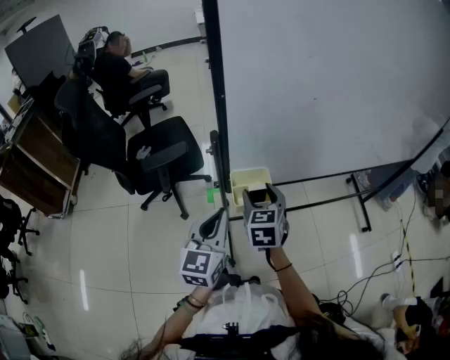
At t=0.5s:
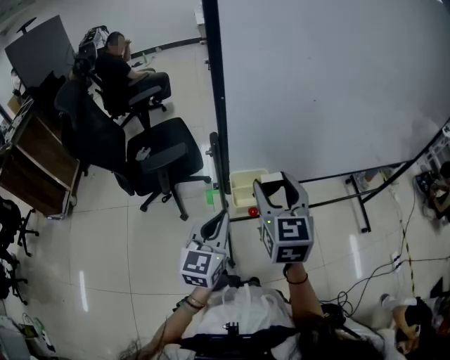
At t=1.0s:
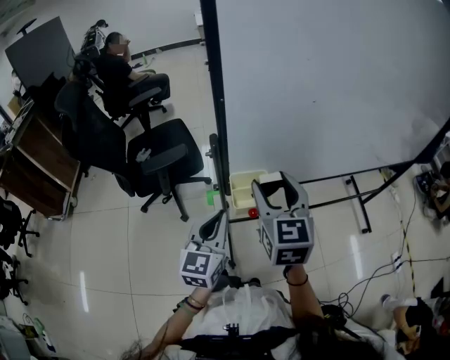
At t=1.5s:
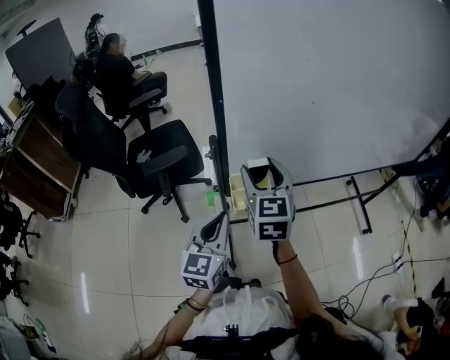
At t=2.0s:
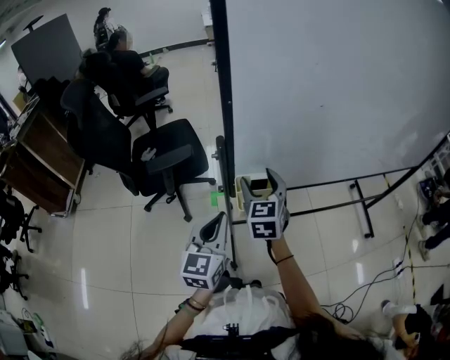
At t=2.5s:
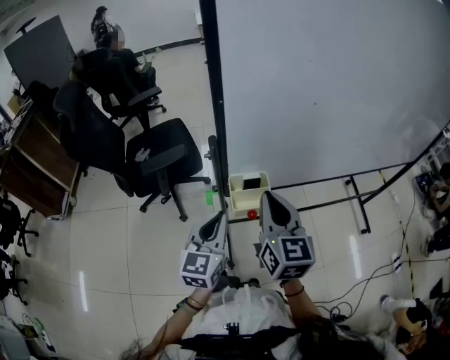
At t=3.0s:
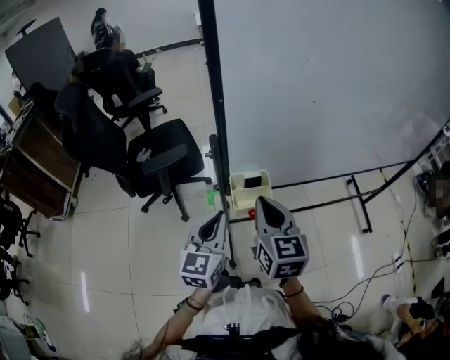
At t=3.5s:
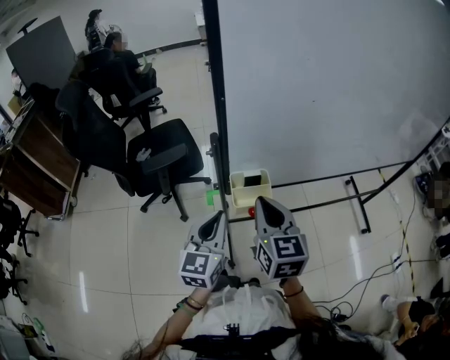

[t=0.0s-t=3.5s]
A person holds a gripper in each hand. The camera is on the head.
t=0.0s to t=2.0s: The right gripper travels upward and back again, roughly 15 cm each way.
t=2.0s to t=3.5s: The right gripper moves backward, some 10 cm, and closes.

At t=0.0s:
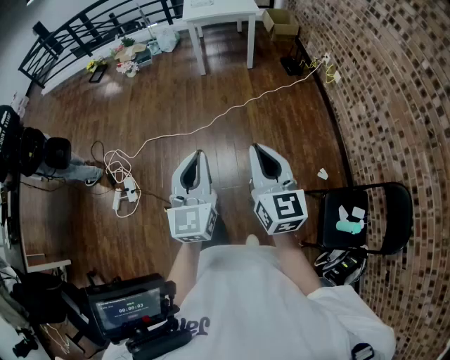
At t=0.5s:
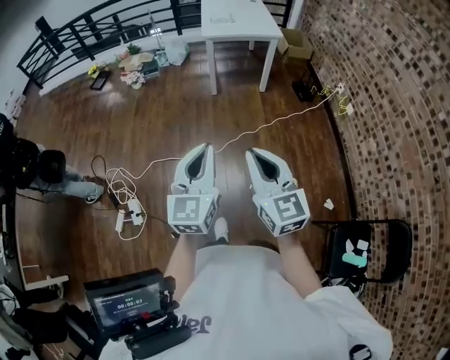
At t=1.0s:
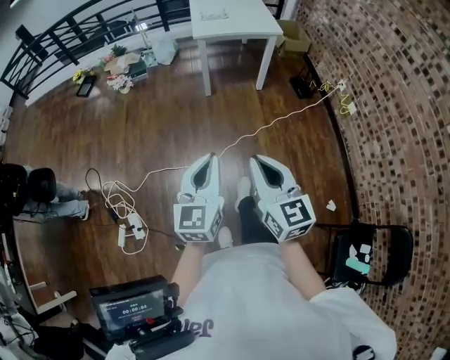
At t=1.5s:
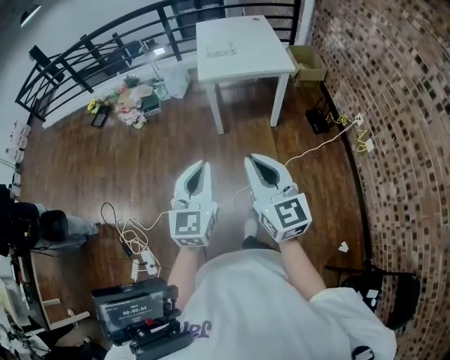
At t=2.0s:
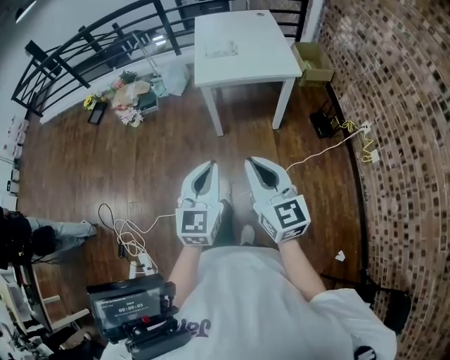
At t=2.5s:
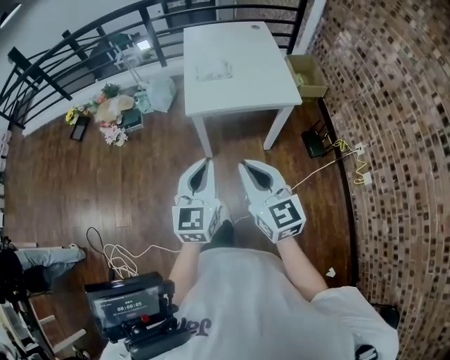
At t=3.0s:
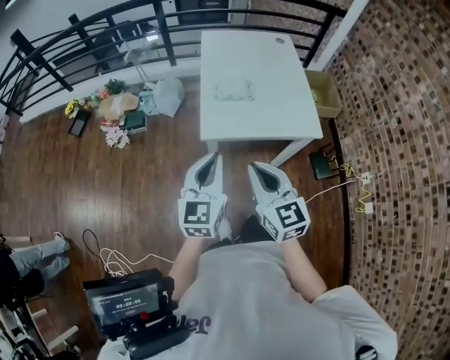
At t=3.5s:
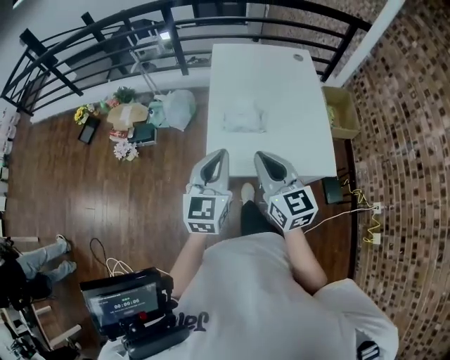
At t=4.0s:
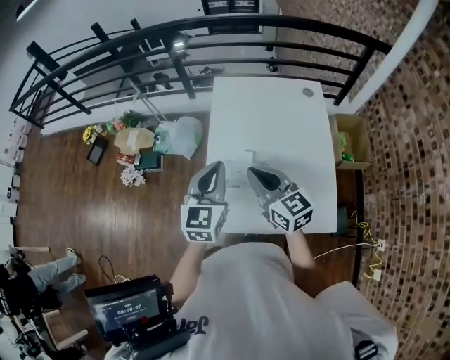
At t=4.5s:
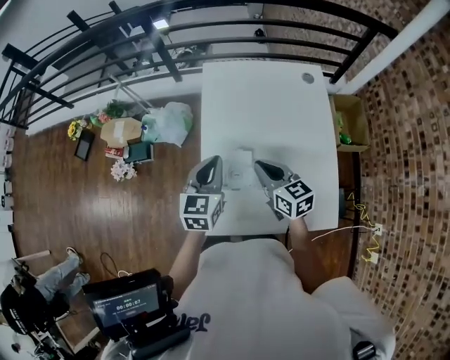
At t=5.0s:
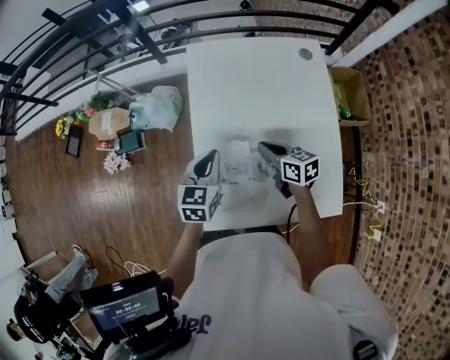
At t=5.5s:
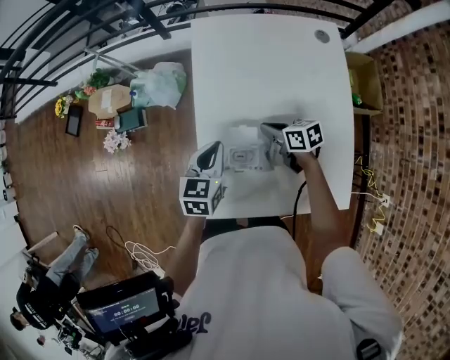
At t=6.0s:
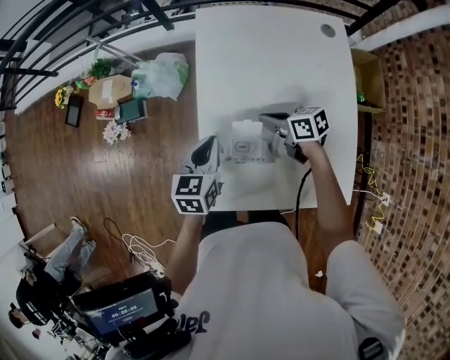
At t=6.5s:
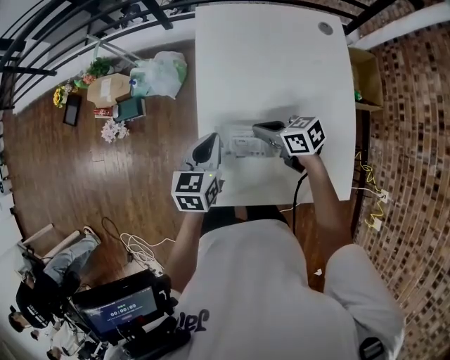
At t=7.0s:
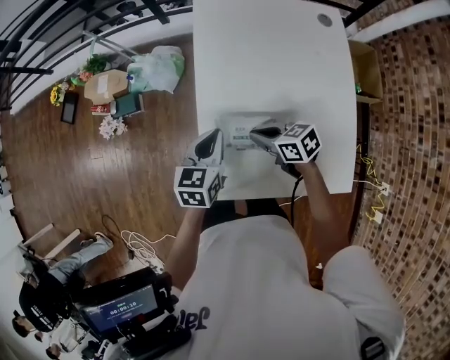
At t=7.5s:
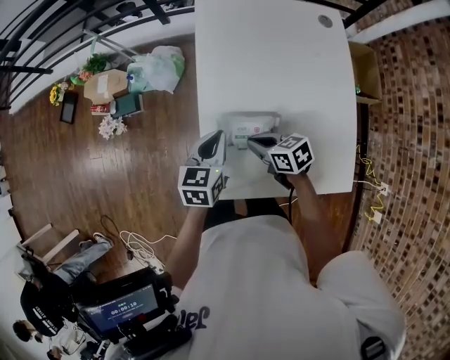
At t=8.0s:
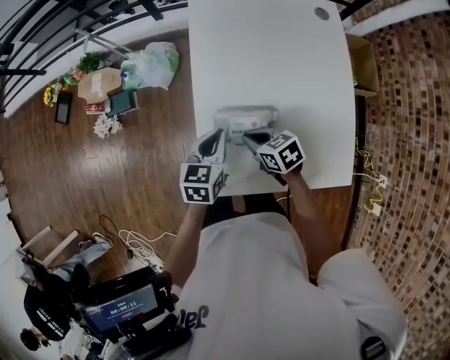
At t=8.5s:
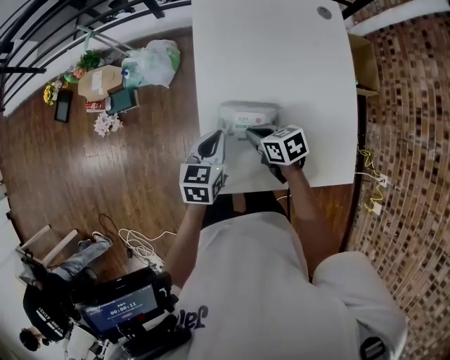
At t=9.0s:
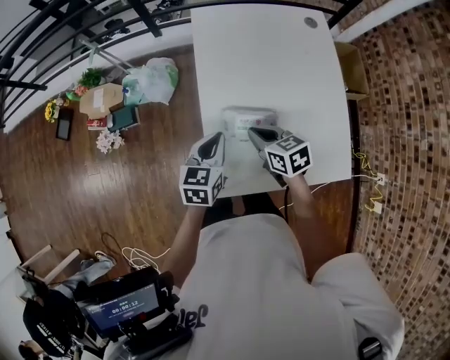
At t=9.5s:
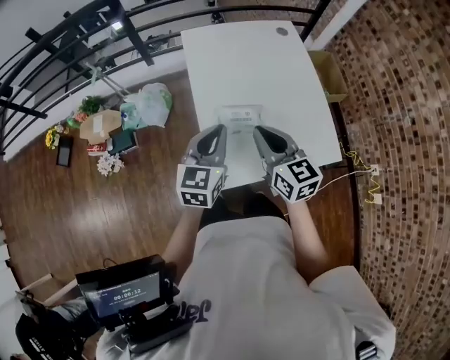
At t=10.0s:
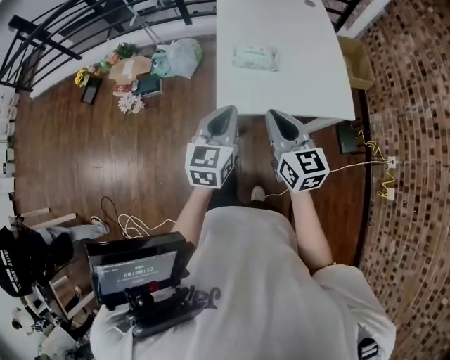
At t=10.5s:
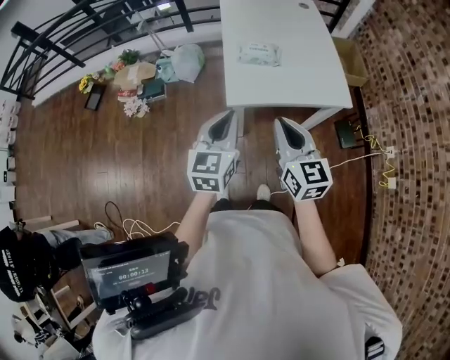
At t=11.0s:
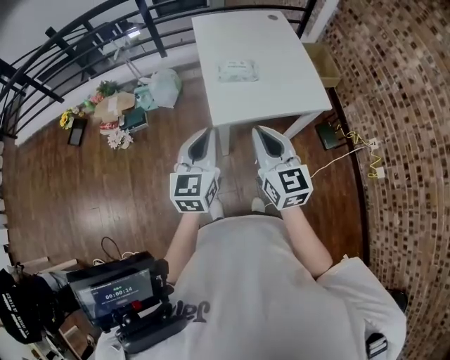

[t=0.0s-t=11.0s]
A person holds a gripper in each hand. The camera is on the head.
t=0.0s to t=2.0s: The pair of grippers is taken forward, approximately 70 cm.
t=2.0s to t=3.5s: The pair of grippers is taken forward, about 60 cm.
t=3.5s to t=5.5s: The right gripper shifts roughly 40 cm forward, downward and to the right, and rotates some 50 degrees. The left gripper shifts some 35 cm forward and downward, and changes its angle by approximately 30 degrees.
t=5.5s to t=7.5s: The right gripper goes approximately 15 cm to the left and backward.
t=7.5s to t=9.0s: The right gripper heads upward, covering some 5 cm.
t=9.0s to t=11.0s: Both grippers move backward and upward, some 40 cm. The right gripper angles its fingers upward, by roughly 30 degrees, while the left gripper turns by roughly 30 degrees.

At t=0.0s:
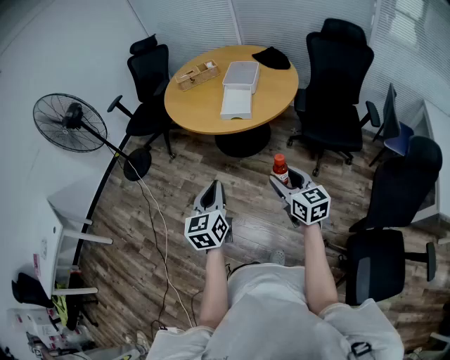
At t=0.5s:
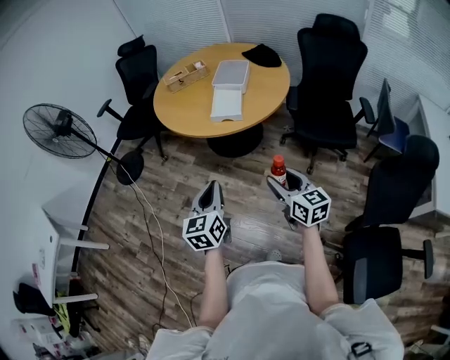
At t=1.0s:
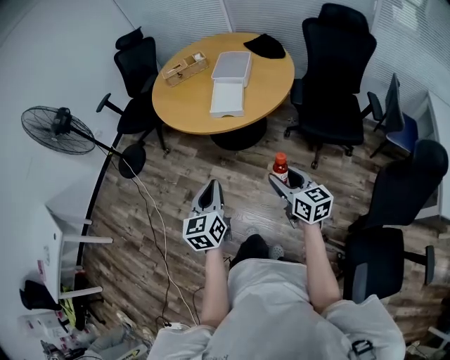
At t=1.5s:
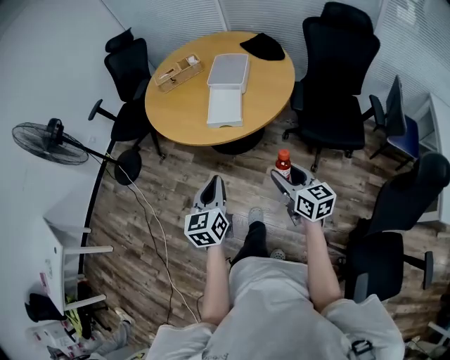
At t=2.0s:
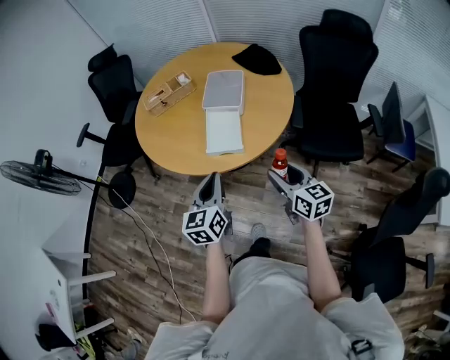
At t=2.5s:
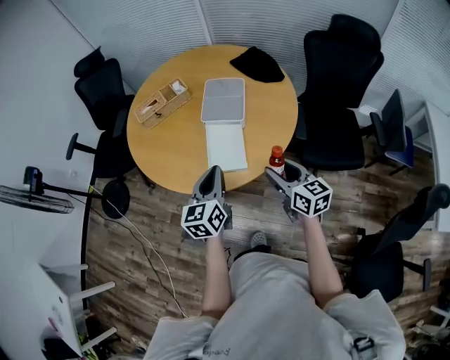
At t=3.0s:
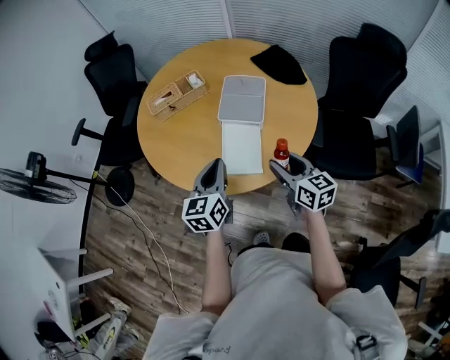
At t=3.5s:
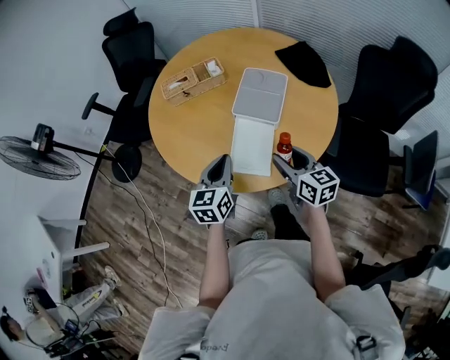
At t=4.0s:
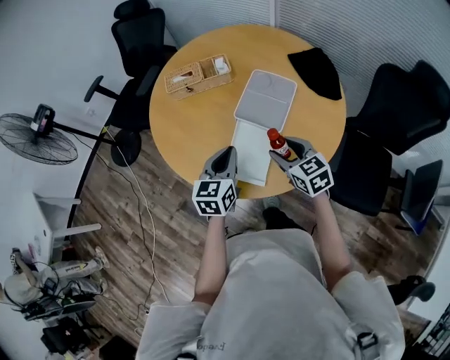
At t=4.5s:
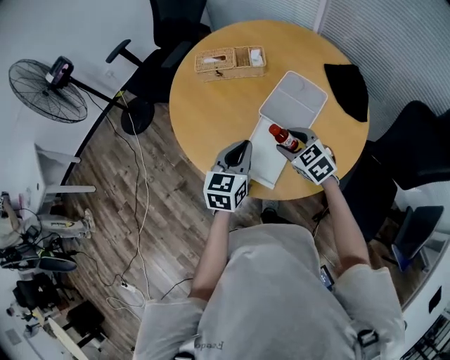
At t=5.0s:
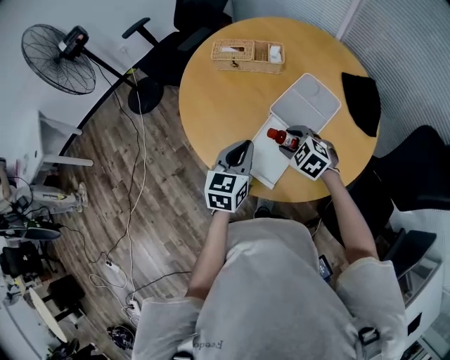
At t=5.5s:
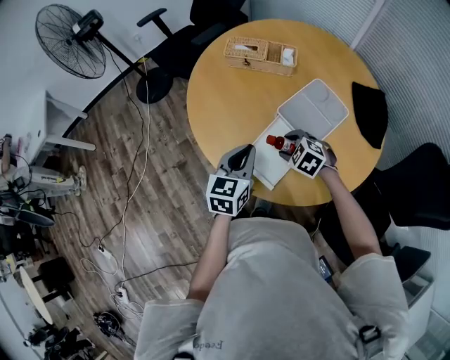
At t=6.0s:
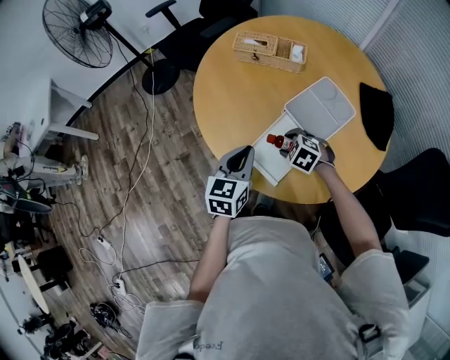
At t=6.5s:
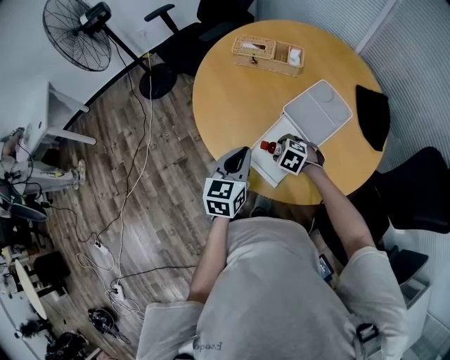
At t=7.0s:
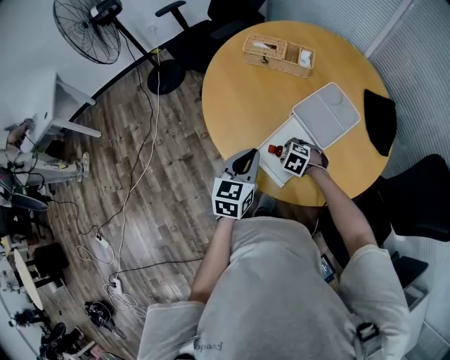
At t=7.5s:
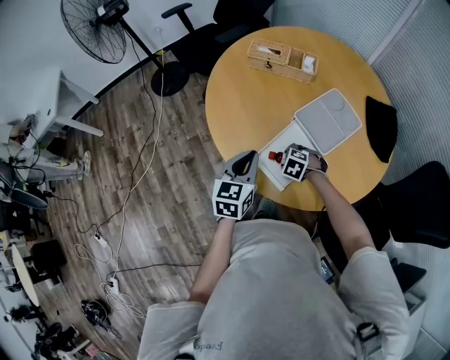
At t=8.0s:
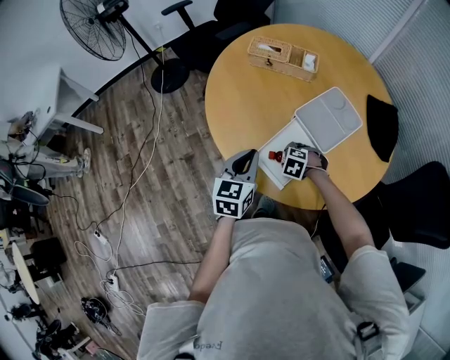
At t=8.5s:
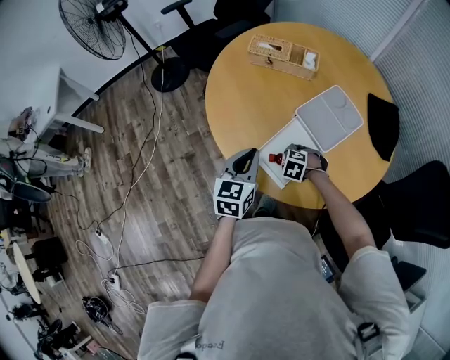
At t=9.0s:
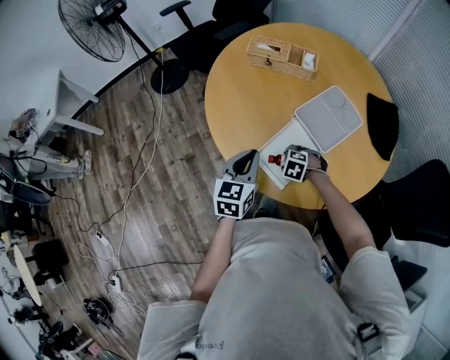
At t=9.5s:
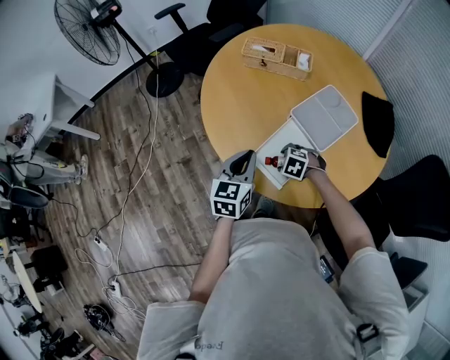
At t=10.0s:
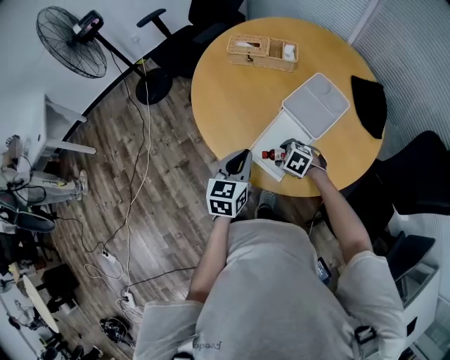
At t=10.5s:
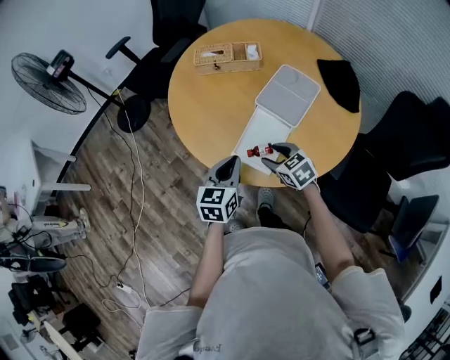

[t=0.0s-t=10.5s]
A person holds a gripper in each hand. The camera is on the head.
t=0.0s to t=2.0s: Both grippers travel together forward, roughly 30 cm.
t=2.0s to t=4.0s: The two grippers go approximately 30 cm forward. The right gripper turns by about 40 degrees.
t=4.0s to t=6.5s: The right gripper travels downward by roughly 15 cm, and tips its fingers downward by approximately 40 degrees; the left gripper shifts by roughly 10 cm, and changes its angle by approximately 20 degrees.
t=6.5s to t=8.5s: The right gripper changes place by roughly 5 cm.
t=8.5s to t=10.5s: The right gripper heads upward, covering about 15 cm, and angles its fingers upward, by about 30 degrees.

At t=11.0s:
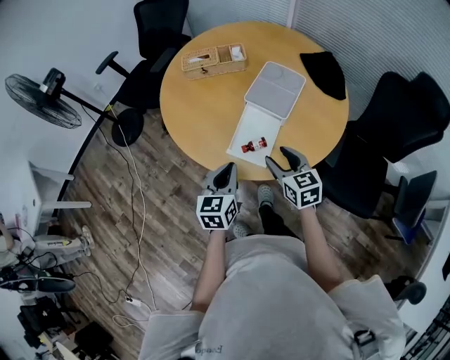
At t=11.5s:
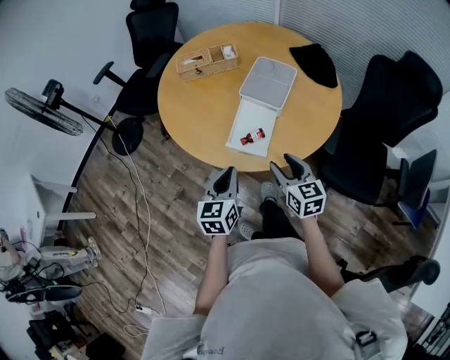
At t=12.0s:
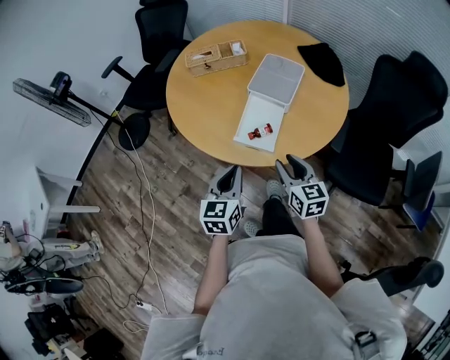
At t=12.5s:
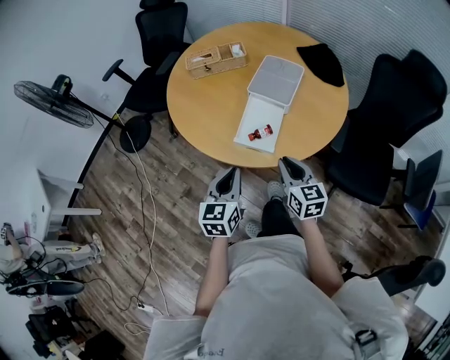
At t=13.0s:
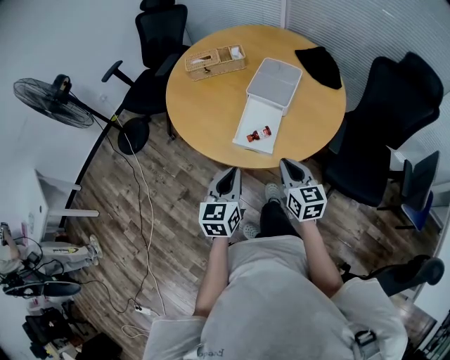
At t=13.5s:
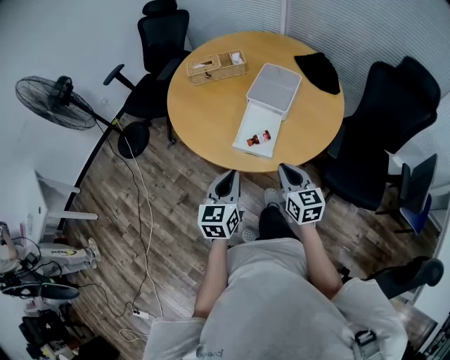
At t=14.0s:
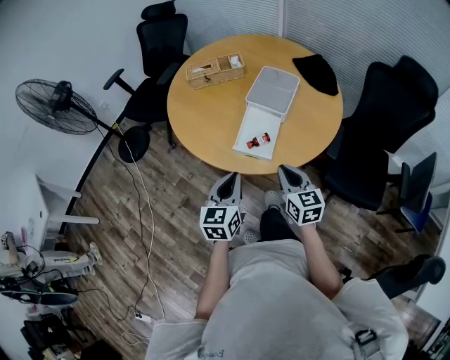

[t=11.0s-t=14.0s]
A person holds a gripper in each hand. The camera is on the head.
t=11.0s to t=12.5s: Both grippers travel together backward, approximately 10 cm. The right gripper closes.
t=12.5s to t=14.0s: There are only small adjustments of the grippers.
